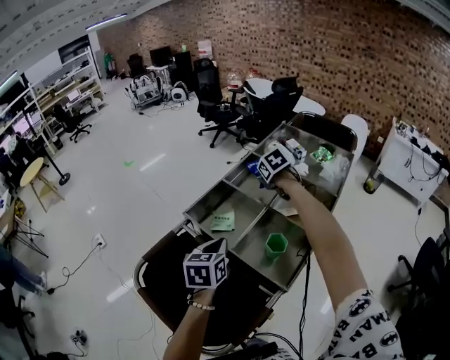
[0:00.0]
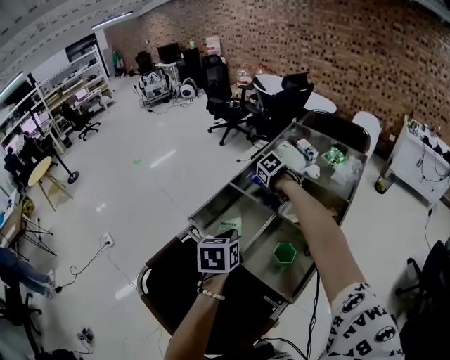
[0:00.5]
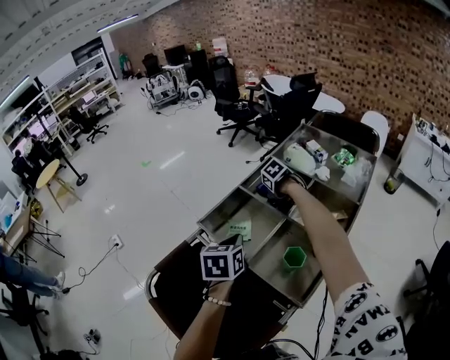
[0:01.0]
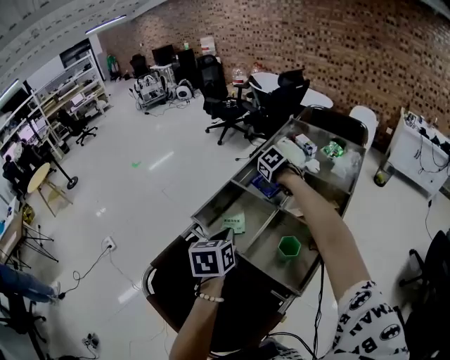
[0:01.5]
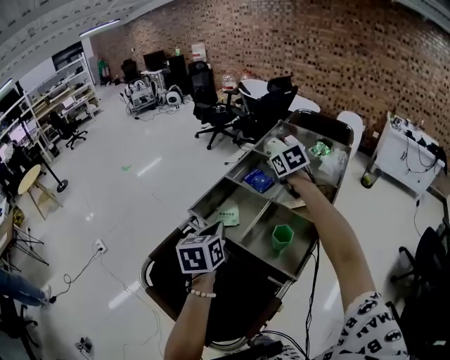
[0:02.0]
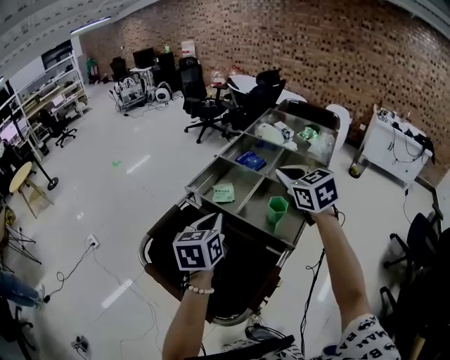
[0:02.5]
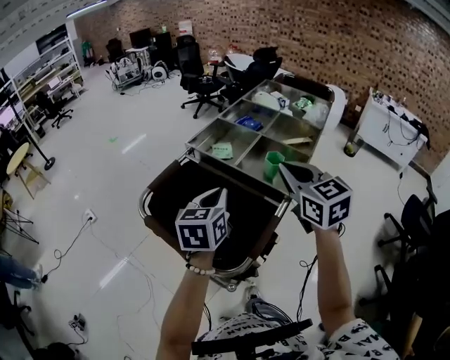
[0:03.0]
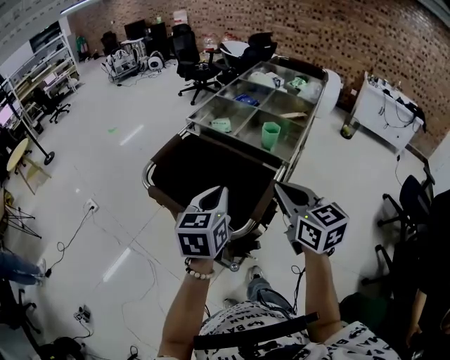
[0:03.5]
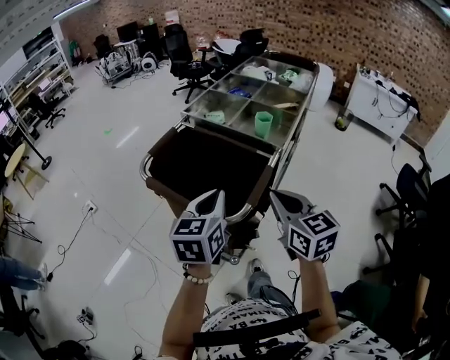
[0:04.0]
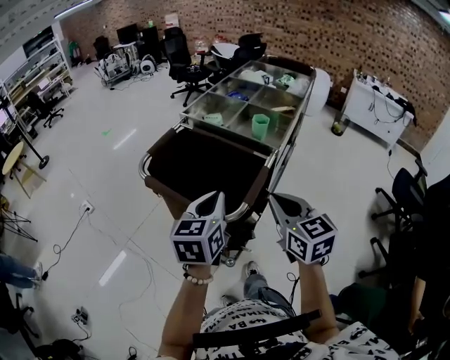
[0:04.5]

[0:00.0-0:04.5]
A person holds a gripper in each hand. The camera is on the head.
0:00.0 to 0:02.0: The right gripper shifts some 5 cm upward, and opens and closes again.
0:02.0 to 0:04.5: The left gripper travels backward by some 30 cm. Meanwhile the right gripper shifts some 60 cm backward, and changes its angle by some 30 degrees.

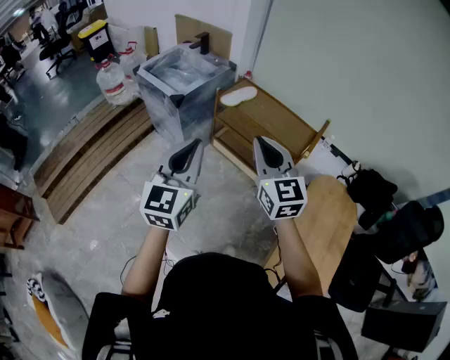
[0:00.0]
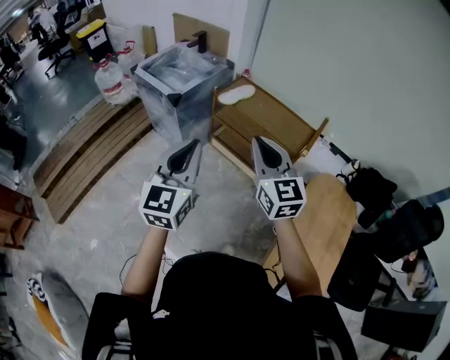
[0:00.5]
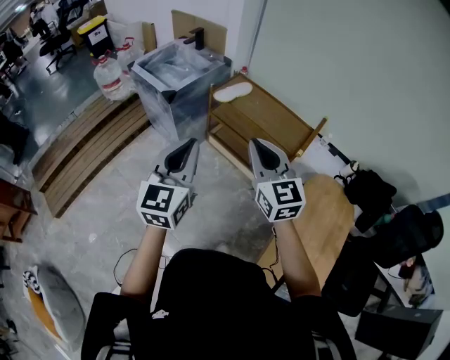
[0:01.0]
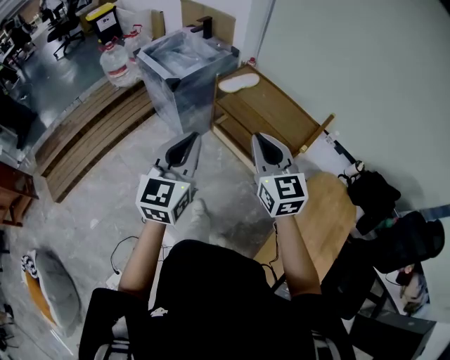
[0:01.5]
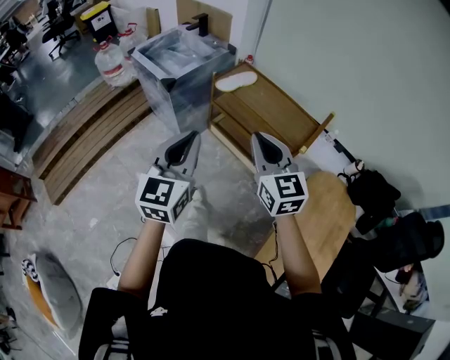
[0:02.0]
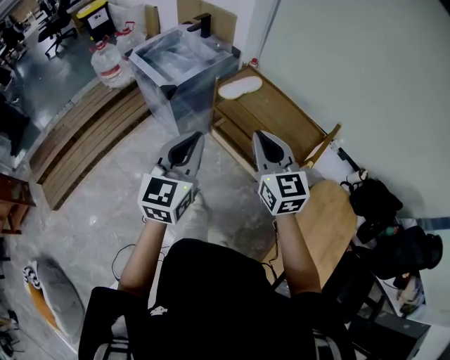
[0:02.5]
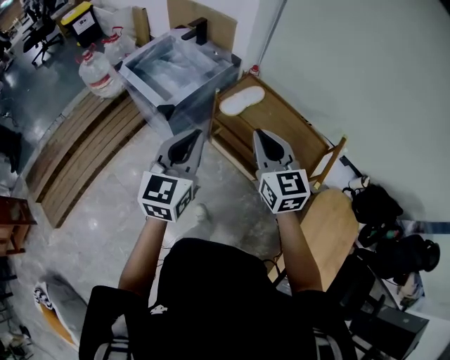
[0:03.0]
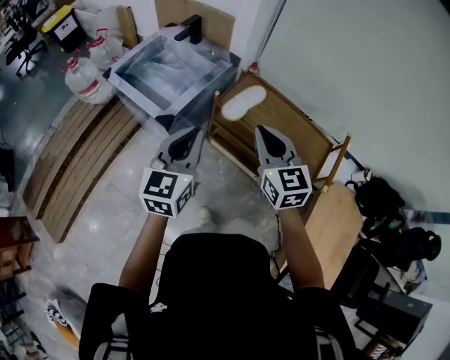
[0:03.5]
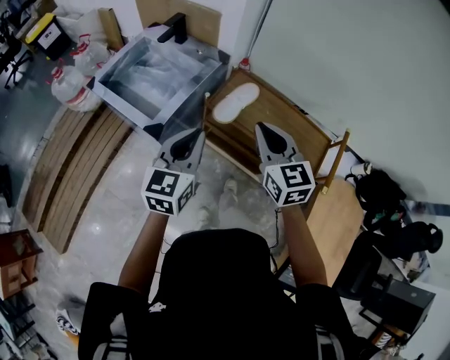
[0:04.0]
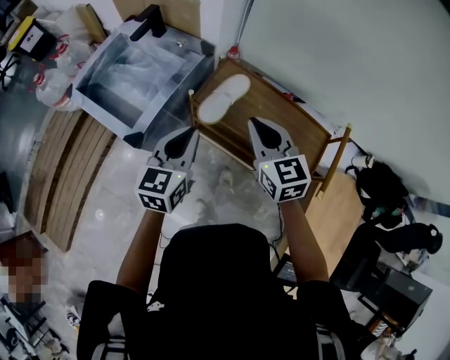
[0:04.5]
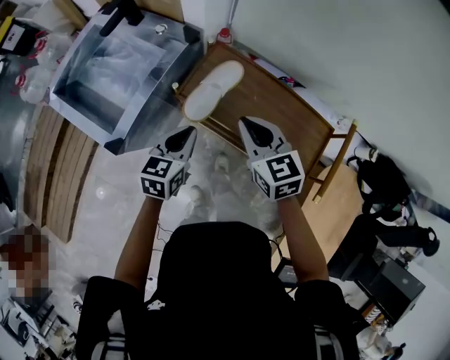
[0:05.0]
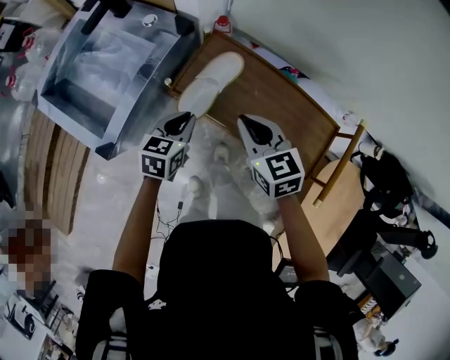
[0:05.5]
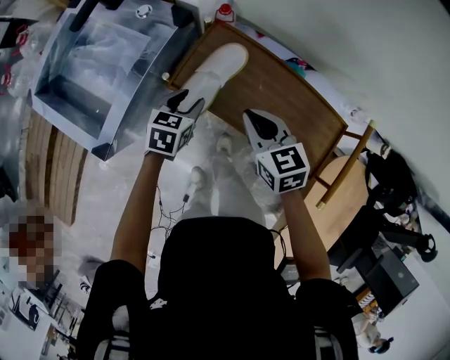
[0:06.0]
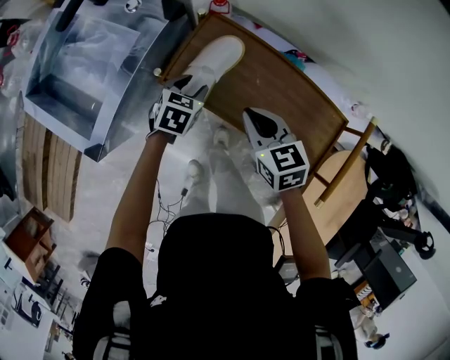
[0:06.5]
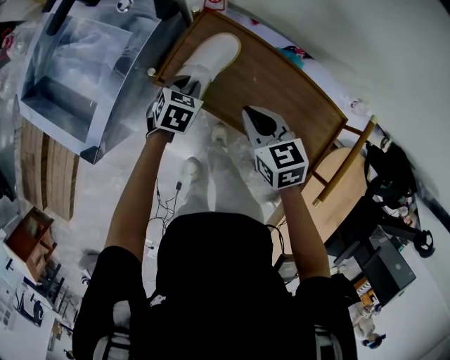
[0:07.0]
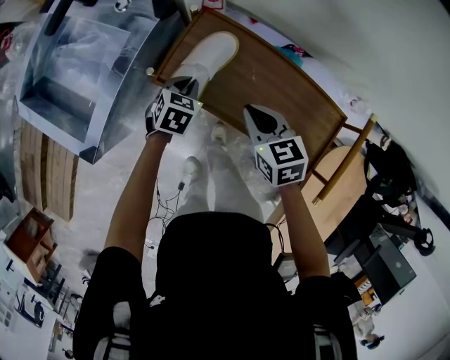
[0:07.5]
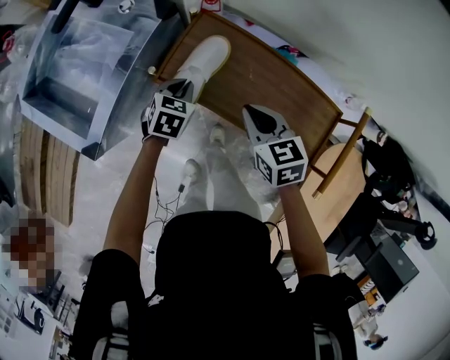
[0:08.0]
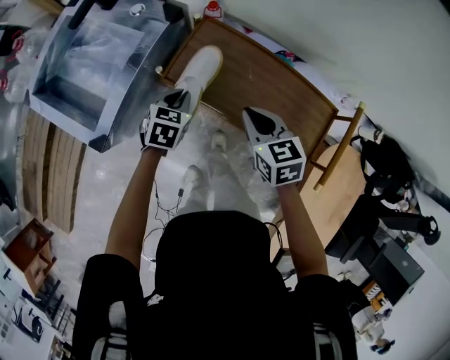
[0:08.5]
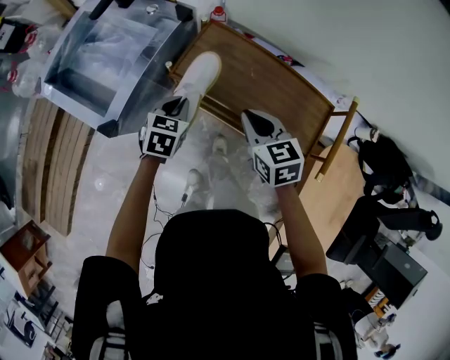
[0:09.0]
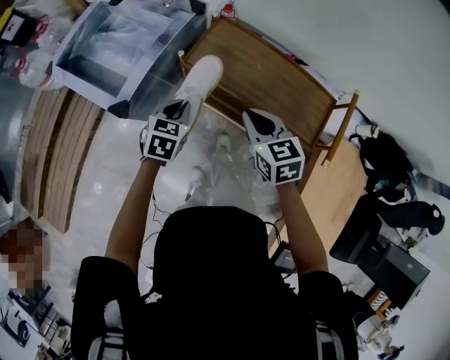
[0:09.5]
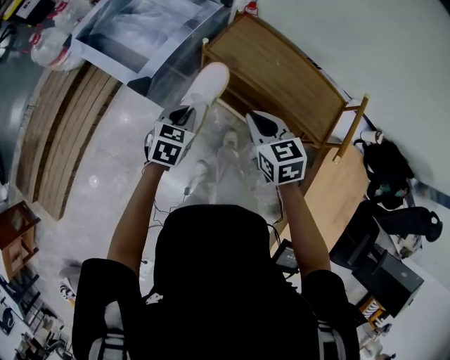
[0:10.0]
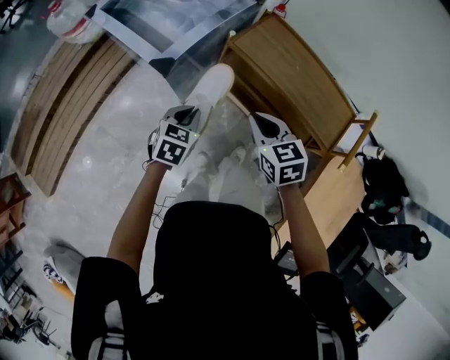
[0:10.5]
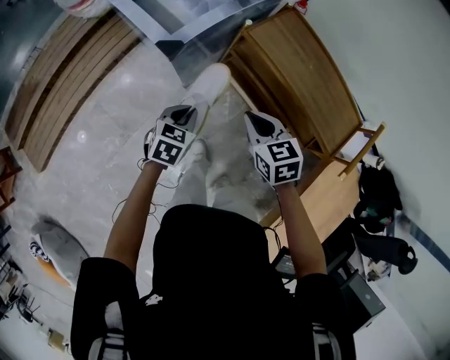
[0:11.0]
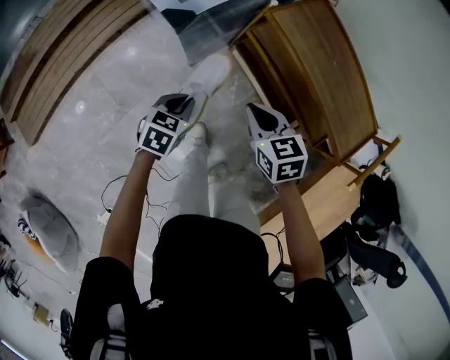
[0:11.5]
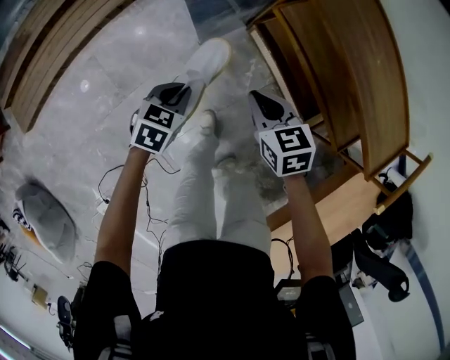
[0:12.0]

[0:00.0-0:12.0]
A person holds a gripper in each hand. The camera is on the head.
0:00.0 to 0:02.0: The right gripper moves to the right and downward, about 10 cm. Meanwhile the left gripper is displaced to the right by some 5 cm.
0:02.0 to 0:04.0: The grippers both shift forward by some 35 cm.
0:04.0 to 0:06.0: Both grippers move downward and forward, roughly 35 cm. The left gripper tilts its fingers roughly 40 degrees downward, and opens, while the right gripper changes its angle by about 30 degrees.
0:06.0 to 0:08.0: The left gripper closes.
0:08.0 to 0:10.0: The two grippers go some 25 cm backward, to the left and upward.
0:10.0 to 0:12.0: The grippers both shift downward and to the left by about 30 cm. The right gripper swivels approximately 20 degrees.

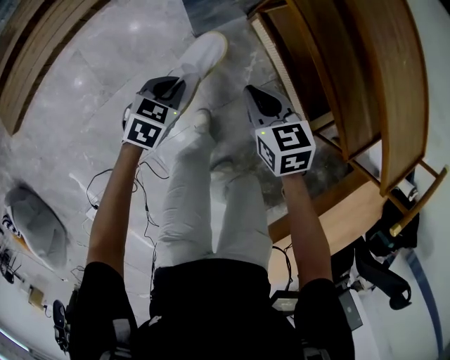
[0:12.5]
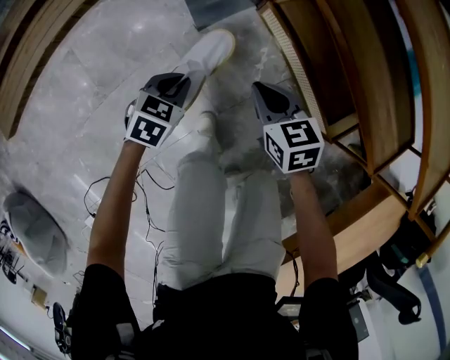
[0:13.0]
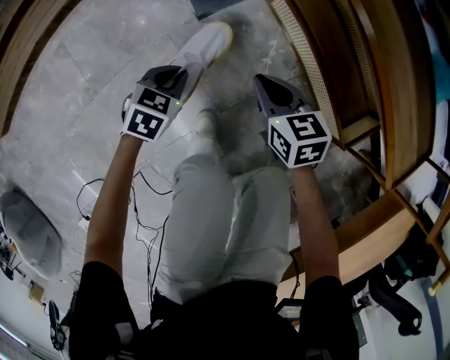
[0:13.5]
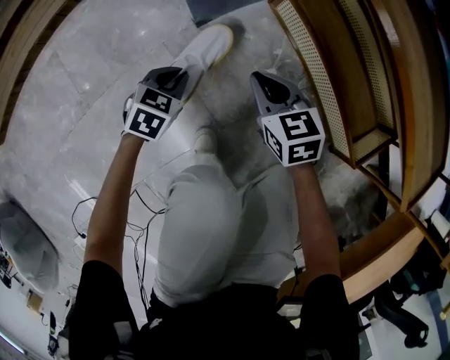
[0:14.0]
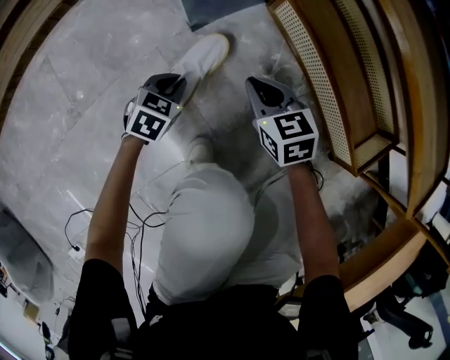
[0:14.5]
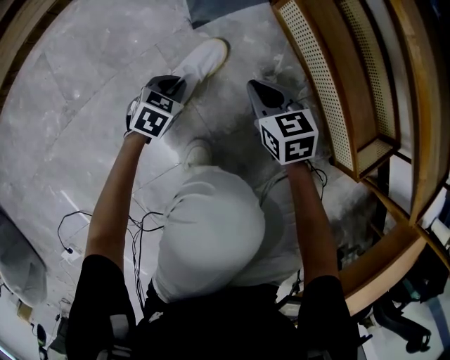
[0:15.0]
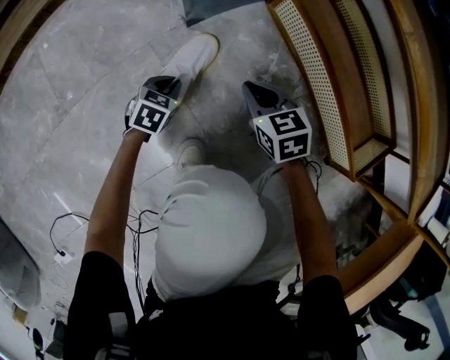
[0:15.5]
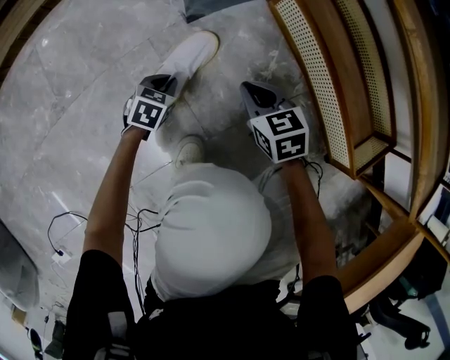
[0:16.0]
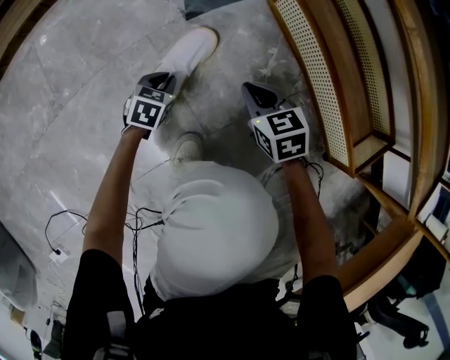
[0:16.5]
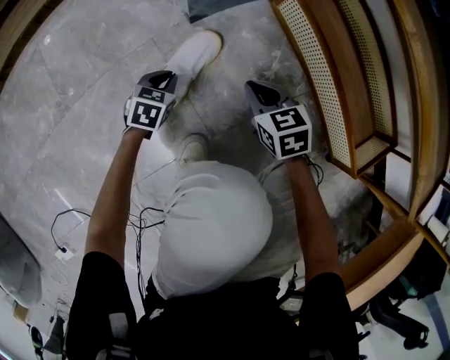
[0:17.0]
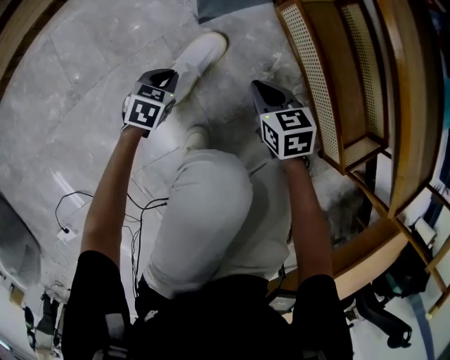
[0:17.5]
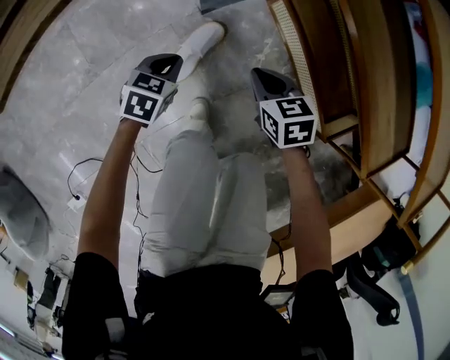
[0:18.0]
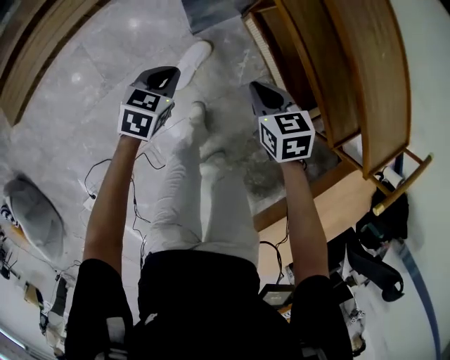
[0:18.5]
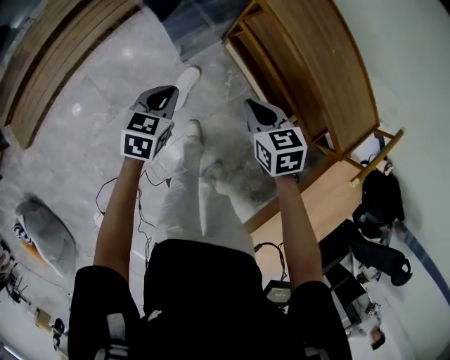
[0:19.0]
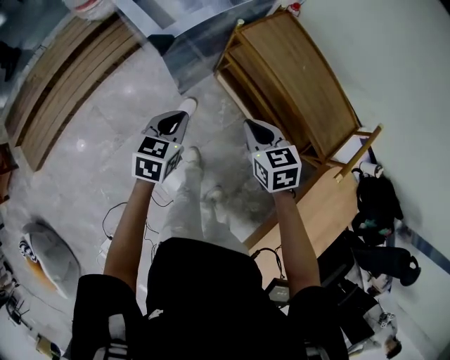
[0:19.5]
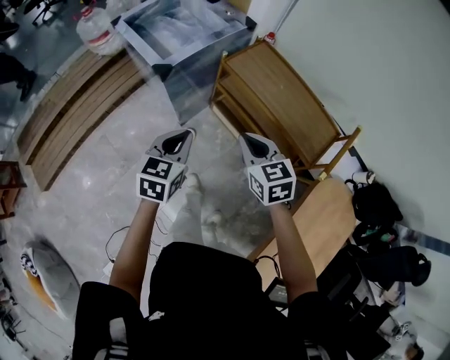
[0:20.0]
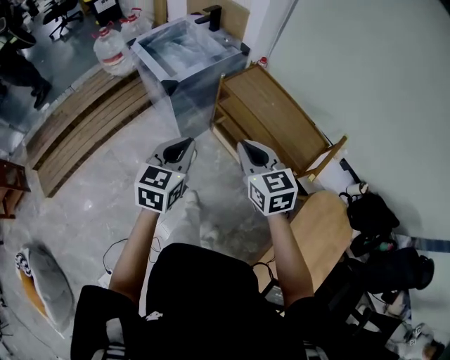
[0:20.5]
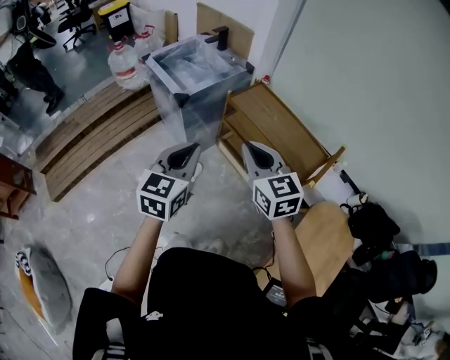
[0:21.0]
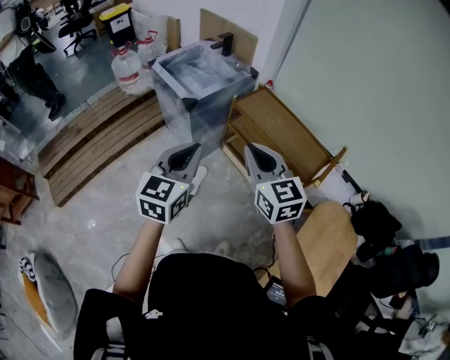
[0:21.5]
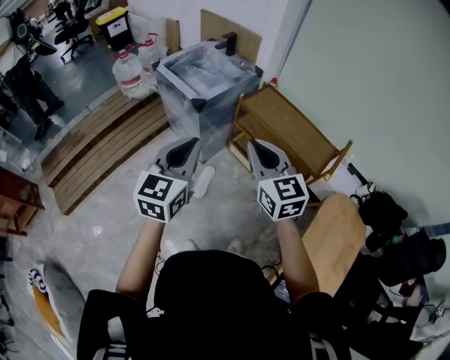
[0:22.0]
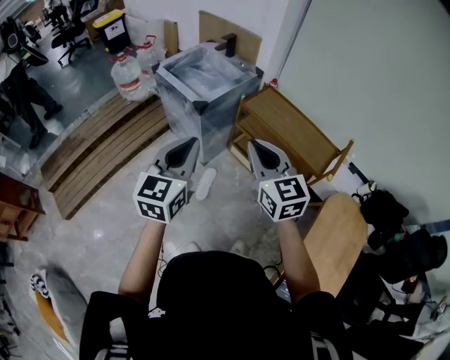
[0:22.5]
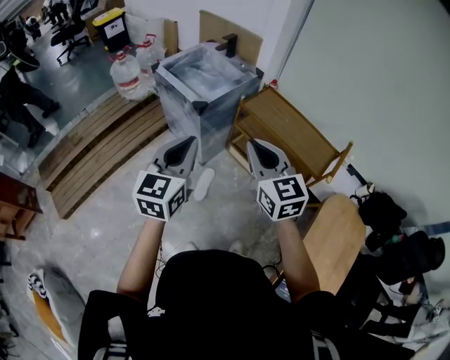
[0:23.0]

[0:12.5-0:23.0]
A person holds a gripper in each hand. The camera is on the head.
0:12.5 to 0:14.5: The two grippers go some 35 cm downward.
0:14.5 to 0:16.5: The grippers both shift downward by about 10 cm.
0:16.5 to 0:19.0: Both grippers move upward, approximately 60 cm.
0:19.0 to 0:21.0: Both grippers move upward and backward, about 50 cm. The left gripper angles its fingers upward, by some 30 degrees; the right gripper angles its fingers upward, by some 30 degrees.
0:21.0 to 0:23.0: The right gripper goes about 10 cm to the left. Meanwhile the left gripper travels to the left and upward by roughly 15 cm.
